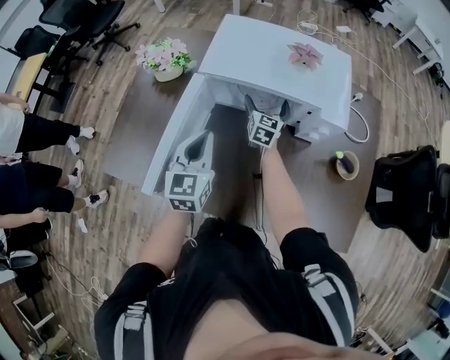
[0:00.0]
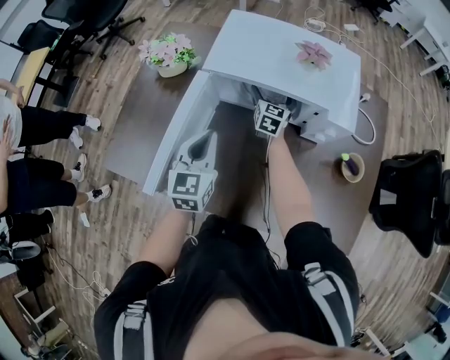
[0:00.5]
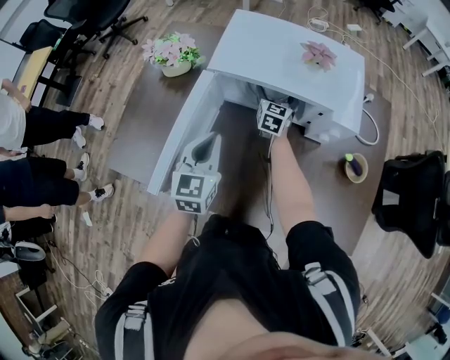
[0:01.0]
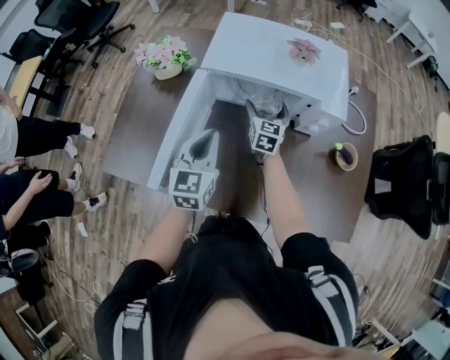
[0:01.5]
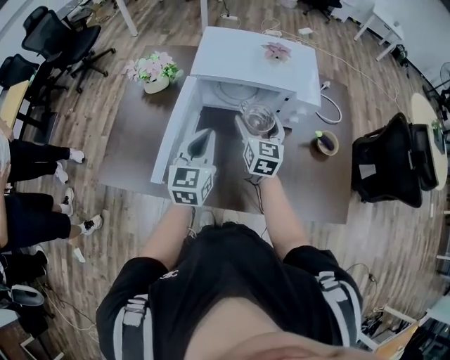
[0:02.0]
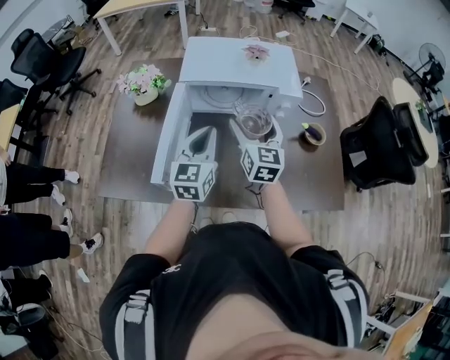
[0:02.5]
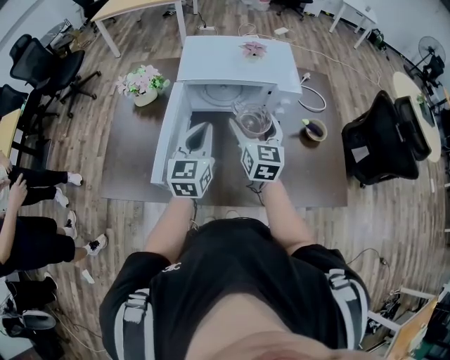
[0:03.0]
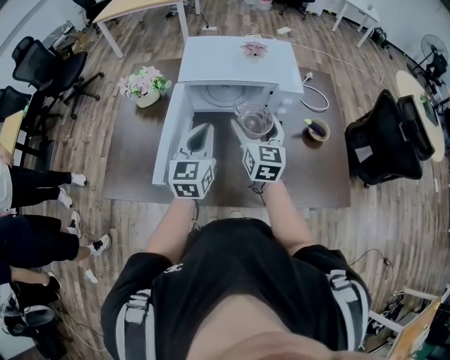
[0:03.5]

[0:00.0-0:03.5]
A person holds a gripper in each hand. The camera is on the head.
0:00.0 to 0:02.0: The right gripper moves backward and upward, roughly 20 cm; the left gripper travels backward by some 5 cm.
0:02.0 to 0:03.5: The right gripper shifts about 10 cm backward and upward.

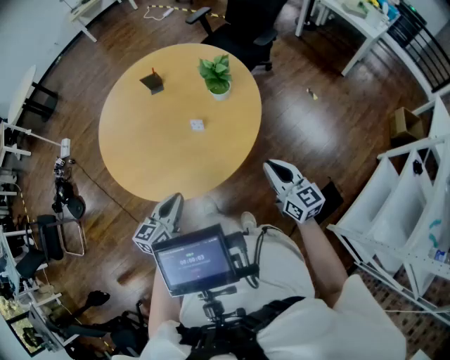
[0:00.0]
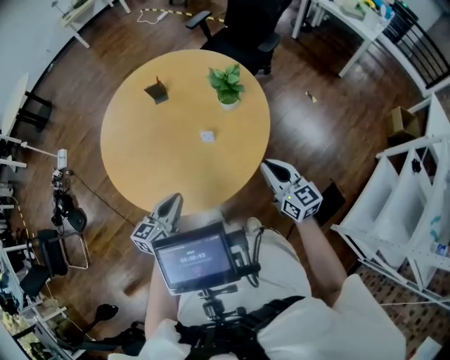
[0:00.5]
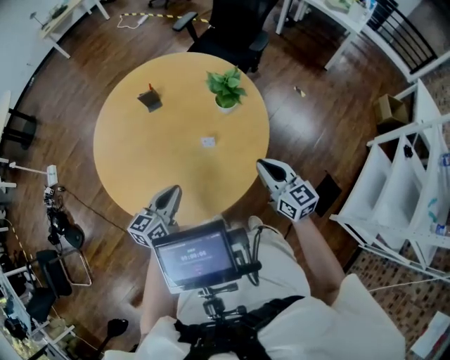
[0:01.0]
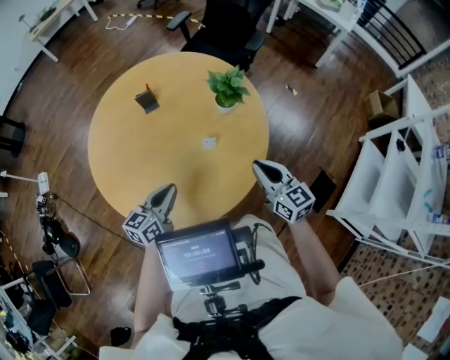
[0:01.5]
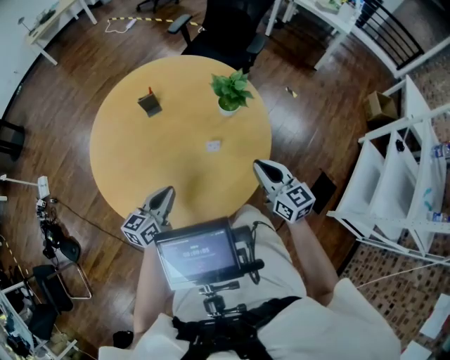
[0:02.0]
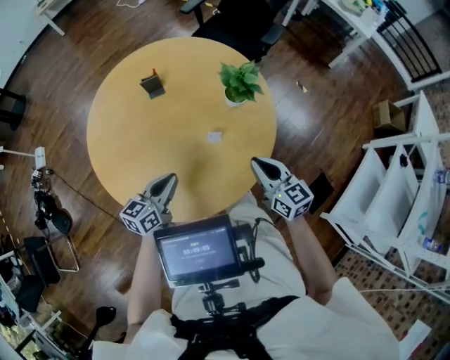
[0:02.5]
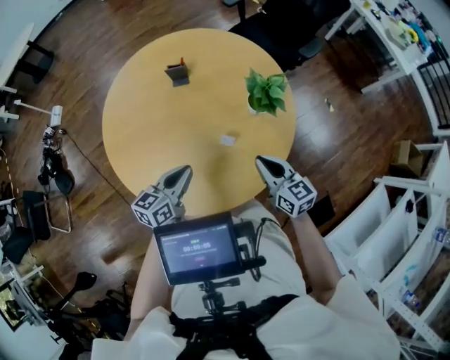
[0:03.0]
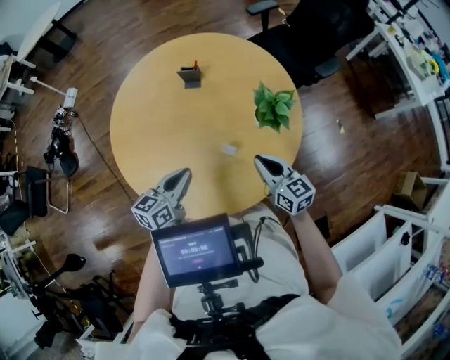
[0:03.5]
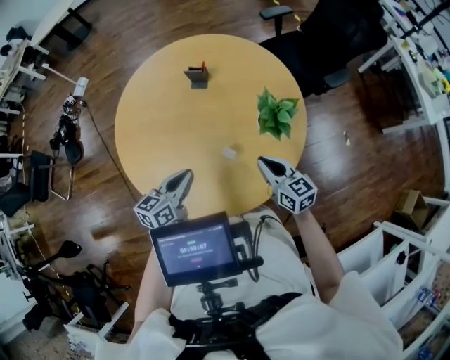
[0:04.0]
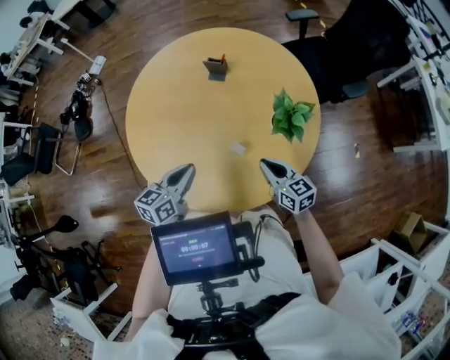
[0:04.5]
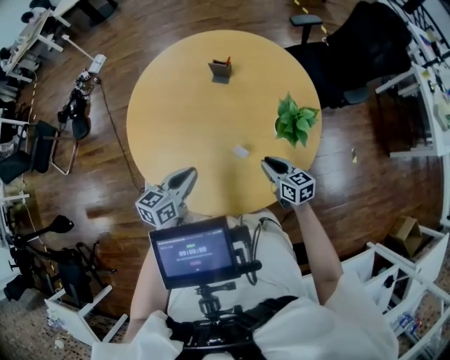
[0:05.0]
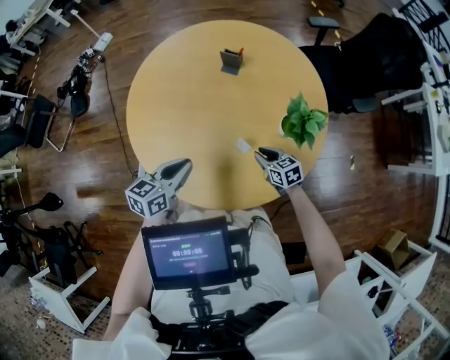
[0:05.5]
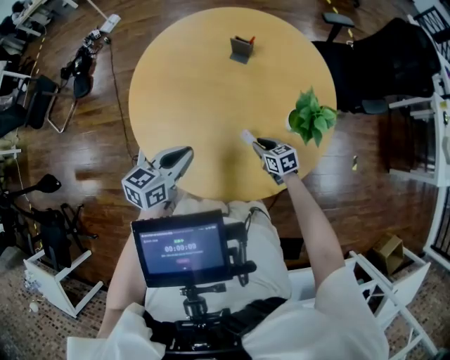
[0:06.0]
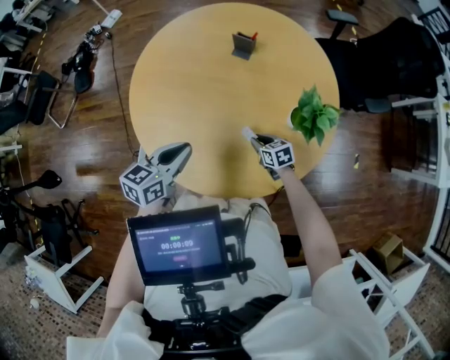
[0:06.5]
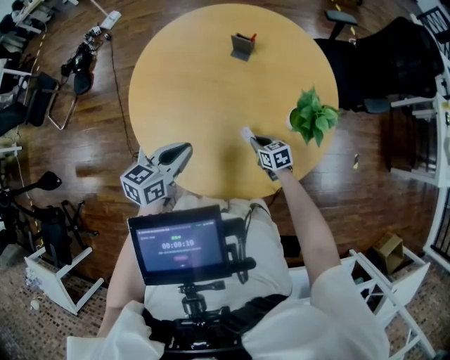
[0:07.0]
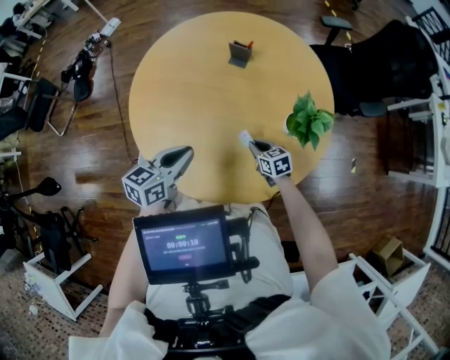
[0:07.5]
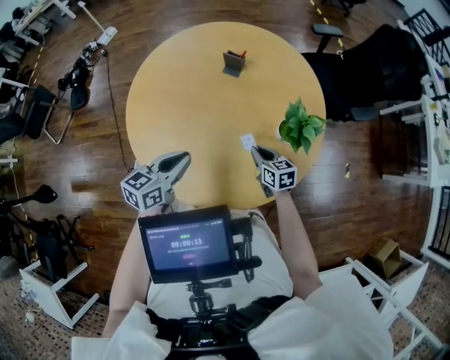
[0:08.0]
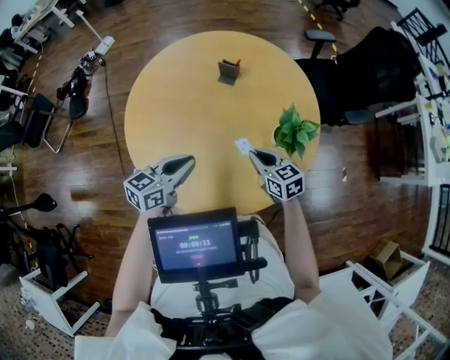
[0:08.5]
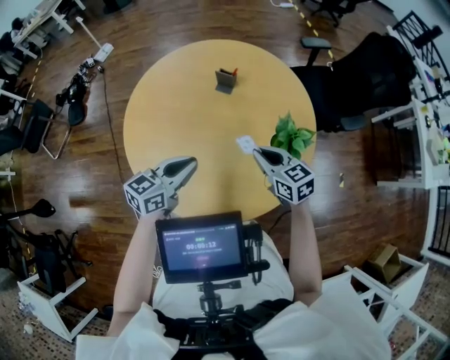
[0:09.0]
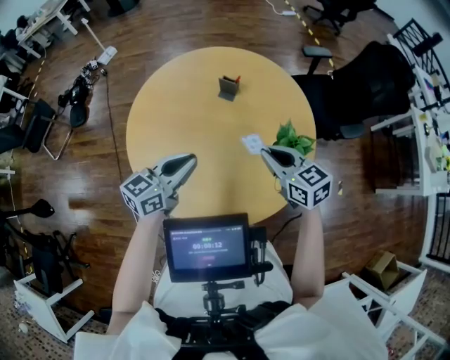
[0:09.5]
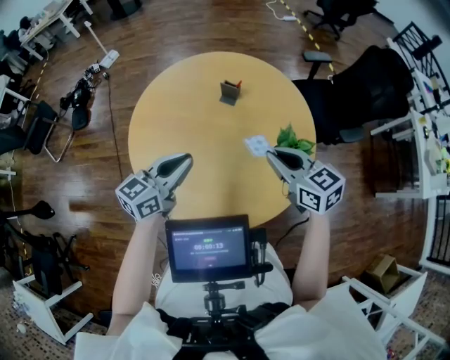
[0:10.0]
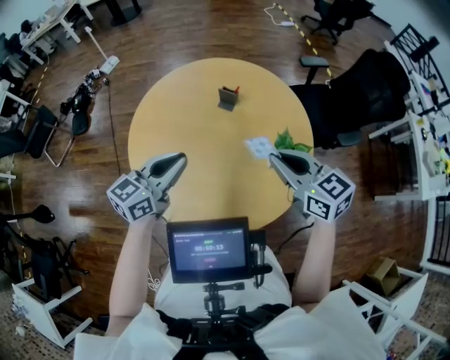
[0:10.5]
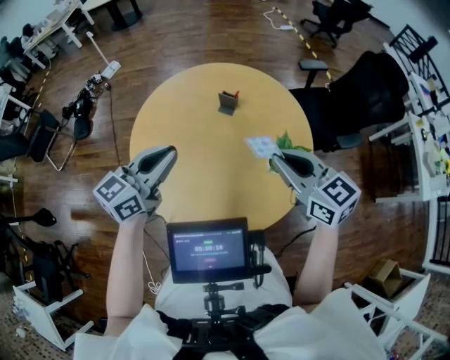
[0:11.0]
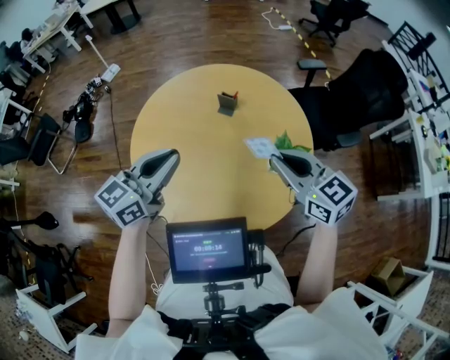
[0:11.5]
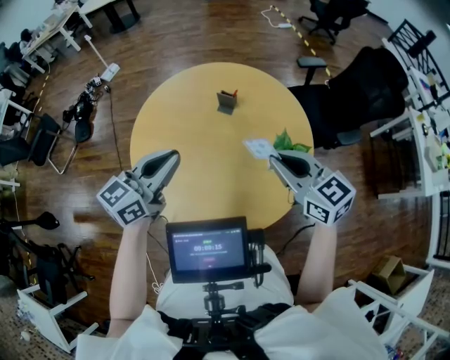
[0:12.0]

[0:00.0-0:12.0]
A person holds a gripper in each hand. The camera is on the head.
0:00.0 to 0:02.0: Both grippers travel together to the left and forward, roughly 20 cm.
0:02.0 to 0:04.0: The right gripper moves some 15 cm, and turns by some 40 degrees. Meanwhile the left gripper ends up about 10 cm from where it was, and changes its angle by approximately 30 degrees.
0:04.0 to 0:06.0: The right gripper moves downward, approximately 20 cm, and rotates approximately 30 degrees; the left gripper changes place by some 5 cm.
0:06.0 to 0:08.0: The right gripper goes roughly 10 cm upward.
0:08.0 to 0:10.0: The right gripper goes approximately 30 cm upward, and swivels roughly 20 degrees. The left gripper travels upward by roughly 10 cm.
0:10.0 to 0:12.0: Both grippers travel together upward, approximately 5 cm.

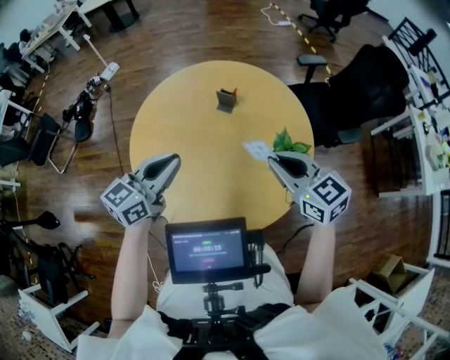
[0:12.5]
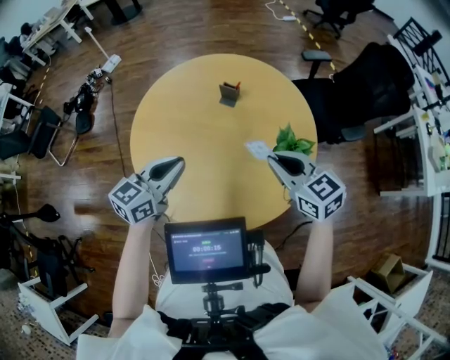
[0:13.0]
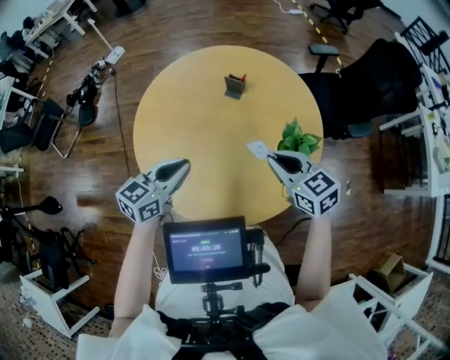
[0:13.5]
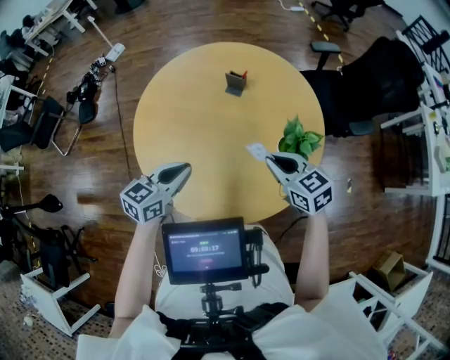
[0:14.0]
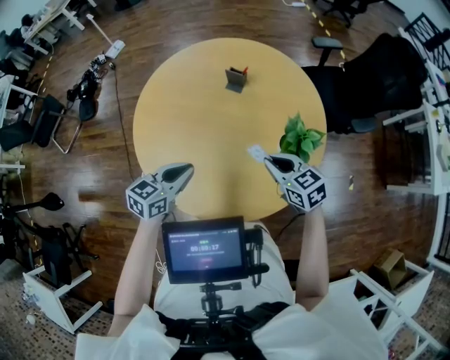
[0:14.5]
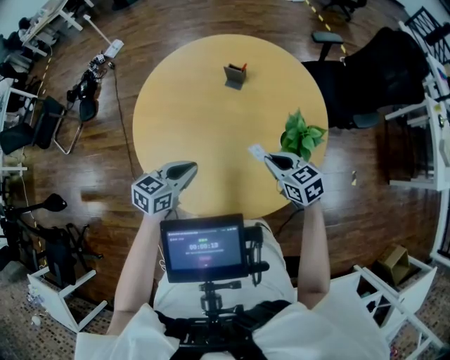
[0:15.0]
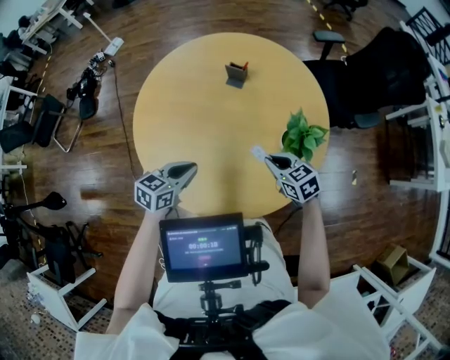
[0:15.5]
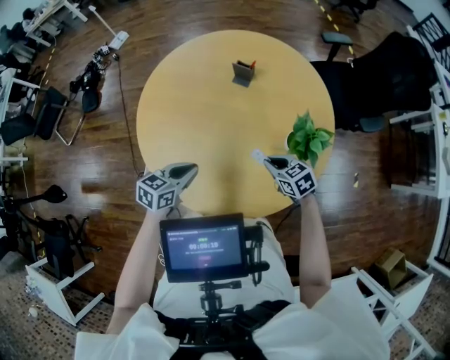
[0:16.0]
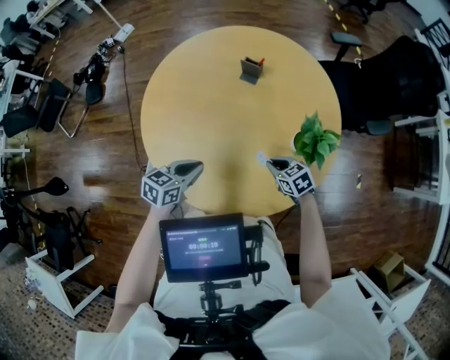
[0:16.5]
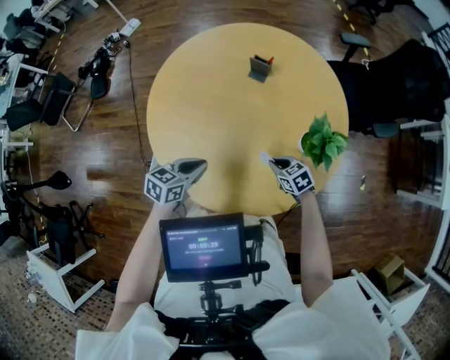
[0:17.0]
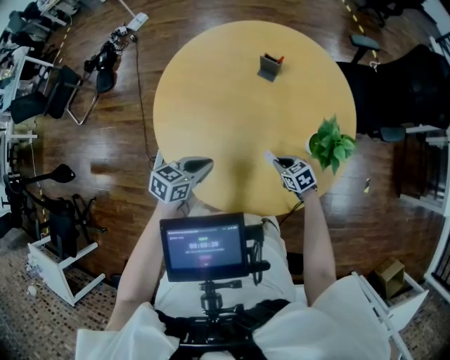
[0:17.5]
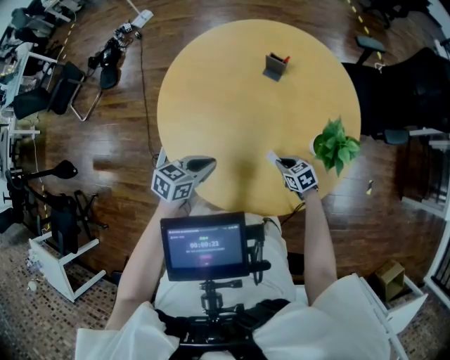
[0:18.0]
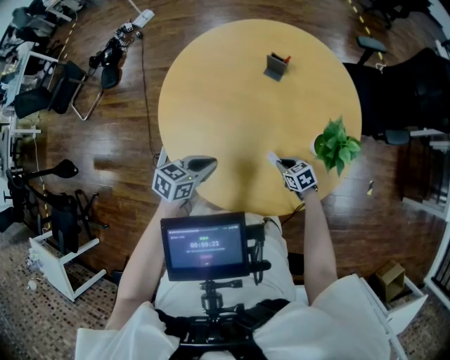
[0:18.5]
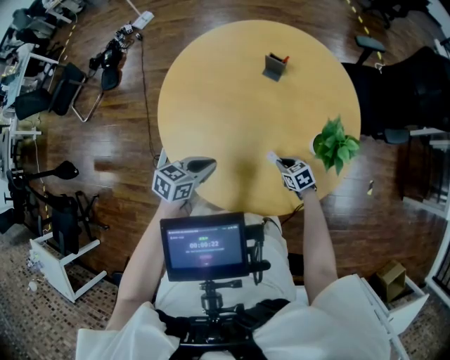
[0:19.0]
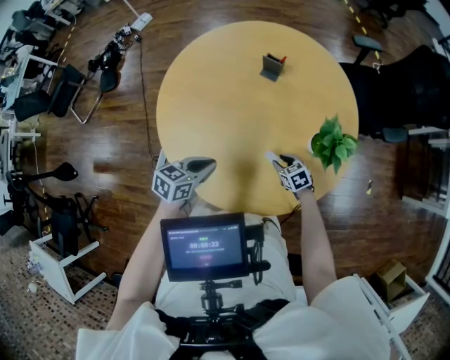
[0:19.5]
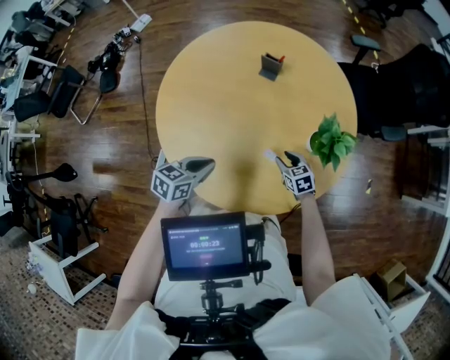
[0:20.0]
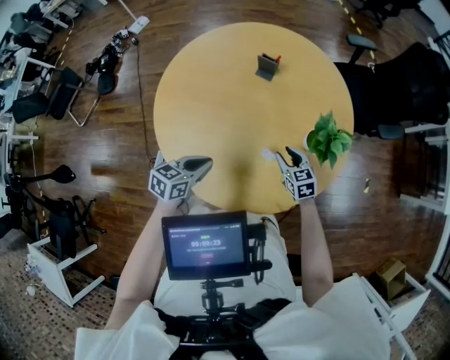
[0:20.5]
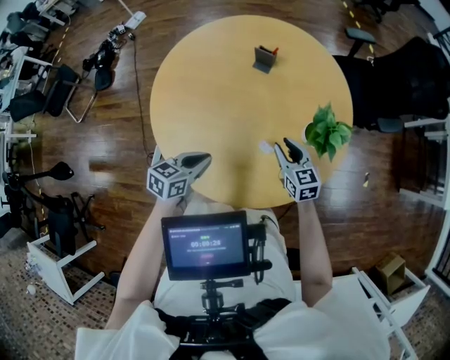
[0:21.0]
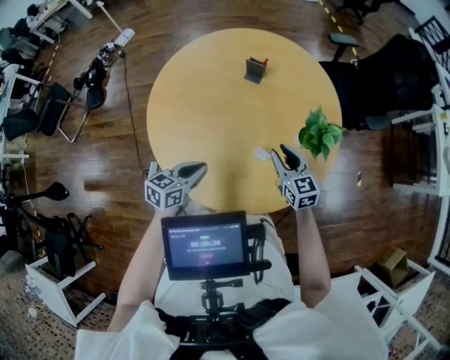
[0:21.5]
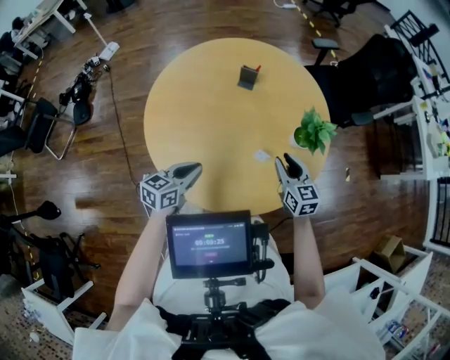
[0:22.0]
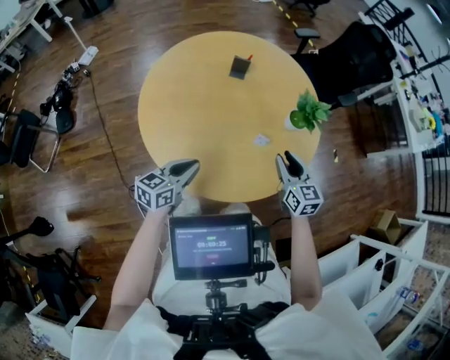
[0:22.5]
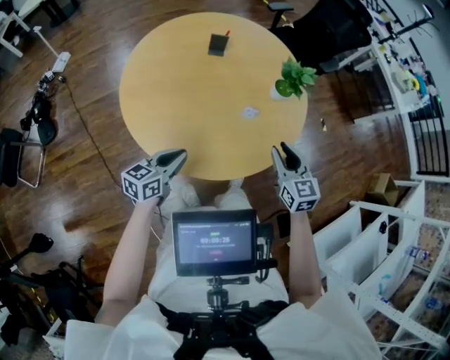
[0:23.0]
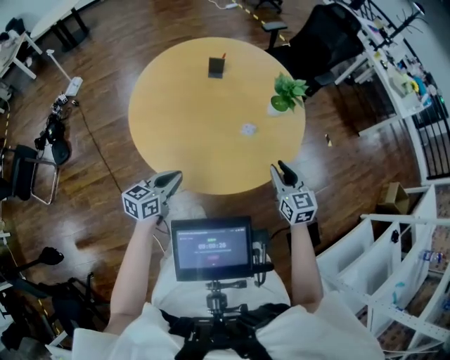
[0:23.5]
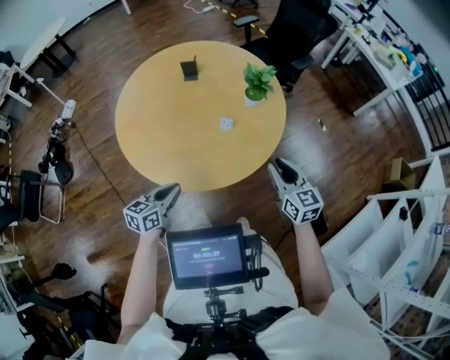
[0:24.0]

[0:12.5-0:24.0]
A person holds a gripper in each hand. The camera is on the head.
0:12.5 to 0:14.5: The two grippers go about 15 cm downward.
0:14.5 to 0:16.5: The left gripper shifts about 10 cm downward, while the right gripper travels downward by about 15 cm.
0:16.5 to 0:18.5: The right gripper travels downward by some 10 cm.
0:18.5 to 0:20.0: The right gripper opens its fingers.
0:20.0 to 0:22.0: The right gripper is displaced upward by some 20 cm, and turns by roughly 30 degrees, while the left gripper moves to the left, some 5 cm.
0:22.0 to 0:24.0: The right gripper travels backward and to the right by approximately 25 cm. Meanwhile the left gripper moves backward, some 15 cm.
